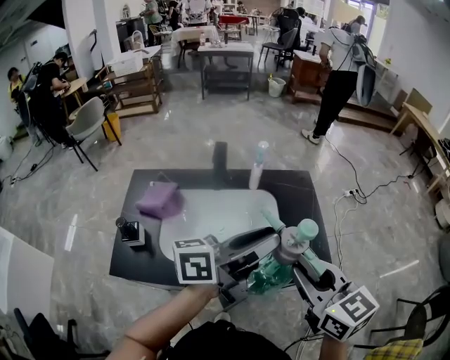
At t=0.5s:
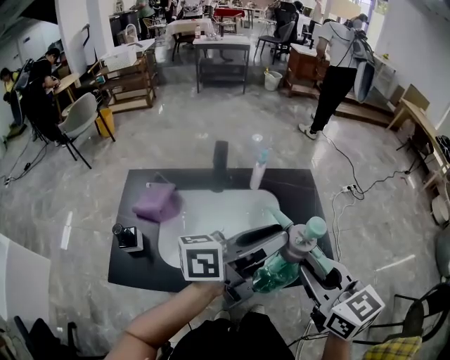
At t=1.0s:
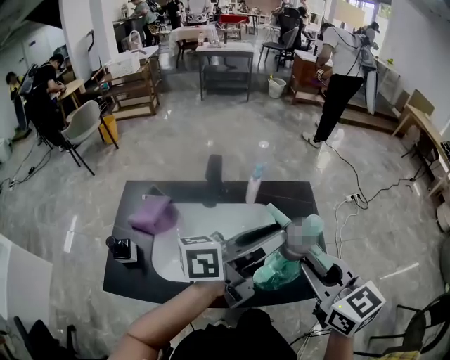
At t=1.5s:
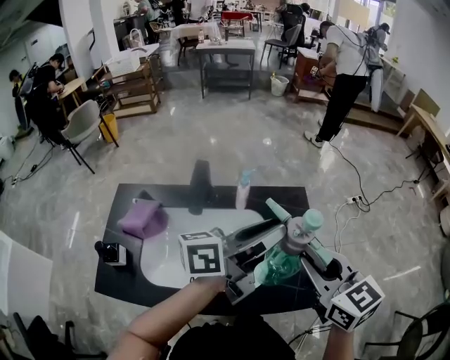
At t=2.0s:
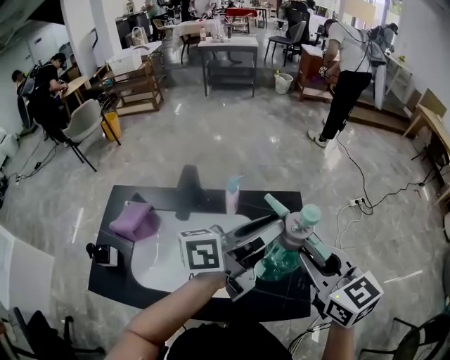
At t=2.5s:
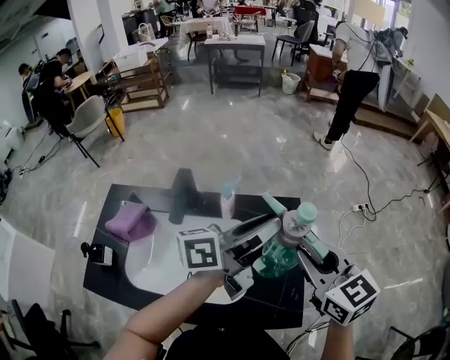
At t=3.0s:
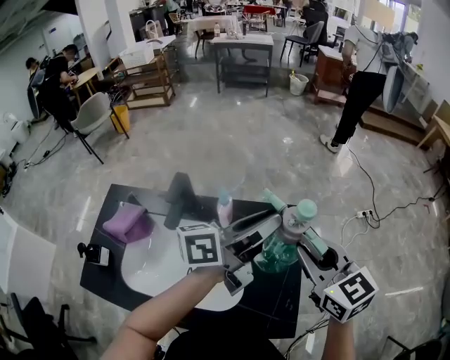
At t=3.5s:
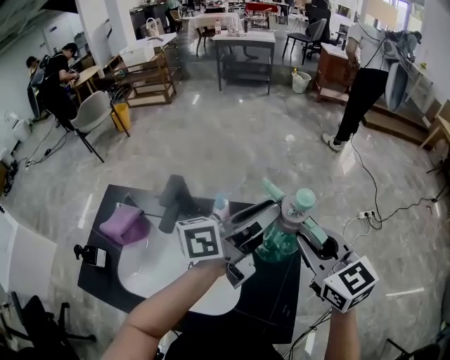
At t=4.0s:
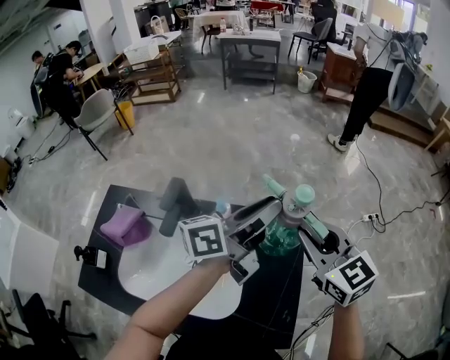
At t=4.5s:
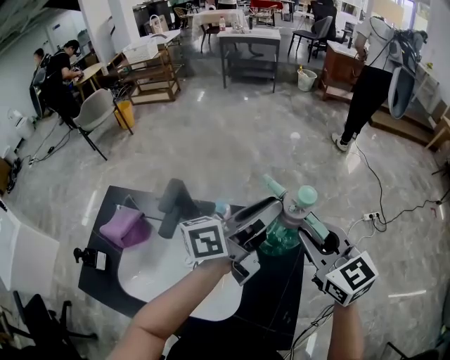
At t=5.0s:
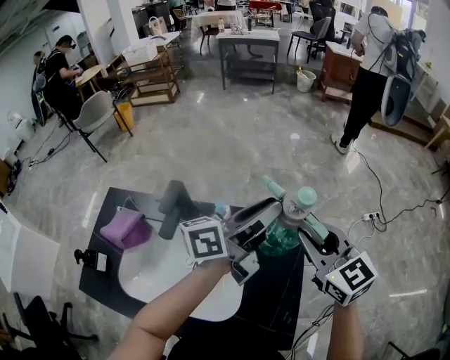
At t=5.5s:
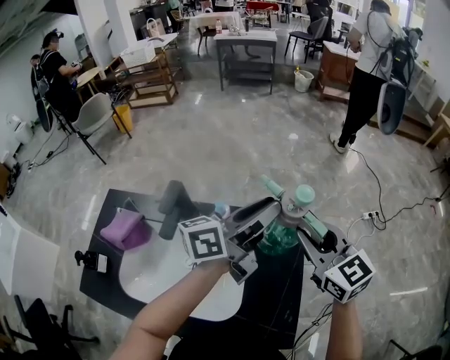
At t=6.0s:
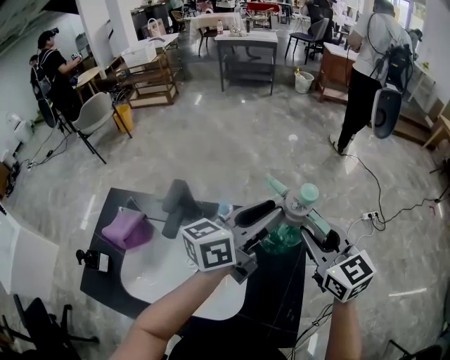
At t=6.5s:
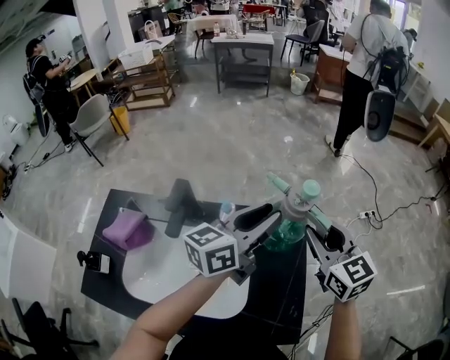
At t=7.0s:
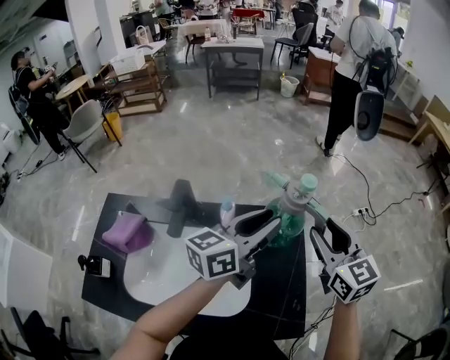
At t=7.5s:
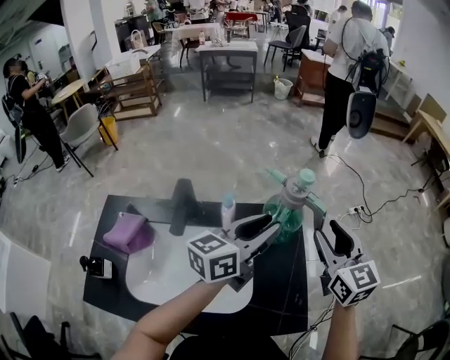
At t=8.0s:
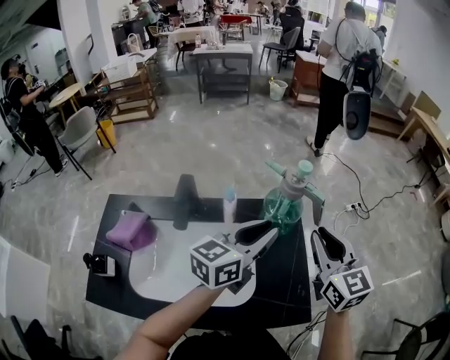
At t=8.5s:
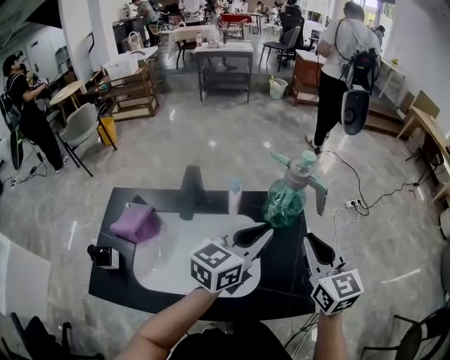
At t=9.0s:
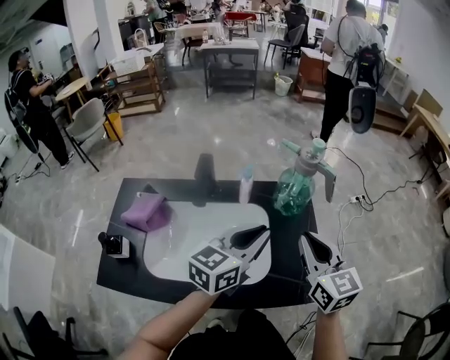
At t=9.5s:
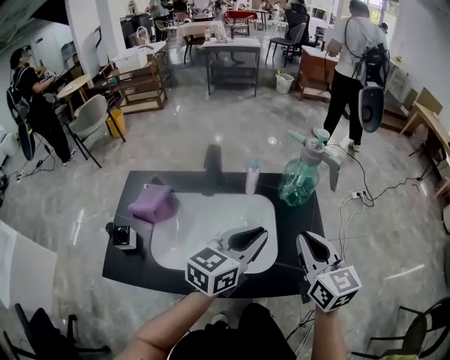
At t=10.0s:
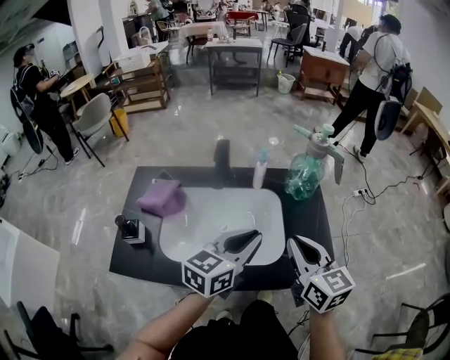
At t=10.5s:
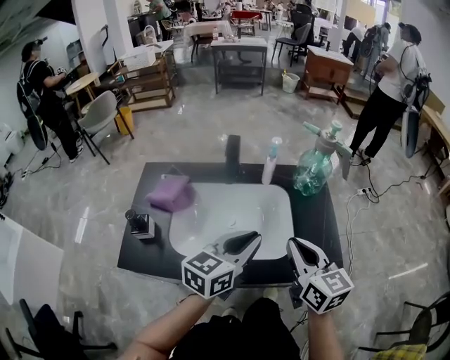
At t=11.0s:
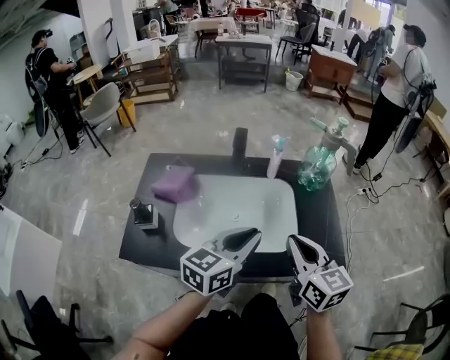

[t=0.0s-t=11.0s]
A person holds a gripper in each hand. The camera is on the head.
t=0.0s to t=2.0s: The two grippers go about 20 cm forward.
t=2.0s to t=3.5s: The two grippers go approximately 15 cm forward.
t=3.5s to t=5.5s: The grippers stay close to where they were, moving slightly.
t=5.5s to t=7.5s: The right gripper shifts roughly 5 cm backward, changes its angle by roughly 20 degrees, and opens, while the left gripper shifts about 10 cm backward, and swivels roughly 20 degrees.
t=7.5s to t=9.0s: The left gripper shifts some 15 cm backward, while the right gripper moves backward and to the left, roughly 15 cm, and closes.
t=9.0s to t=11.0s: The grippers both shift backward and to the left by some 15 cm.

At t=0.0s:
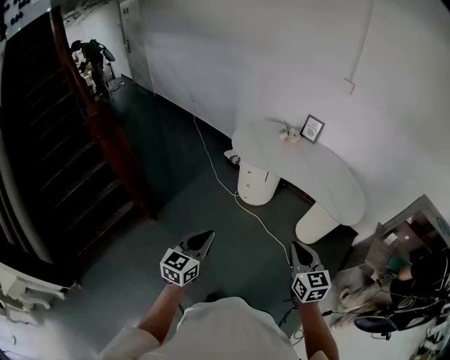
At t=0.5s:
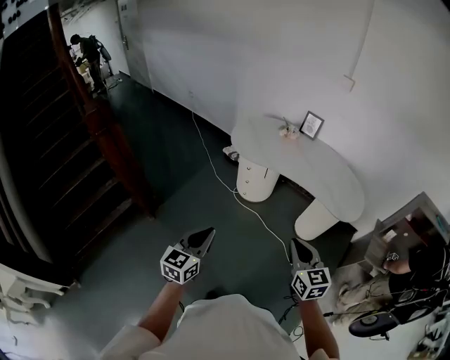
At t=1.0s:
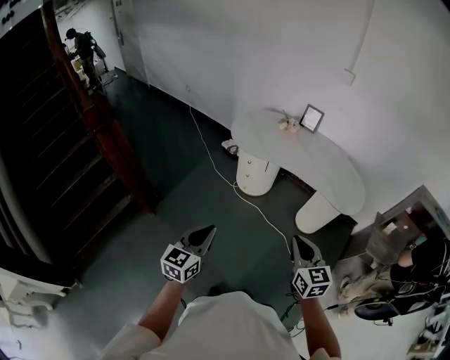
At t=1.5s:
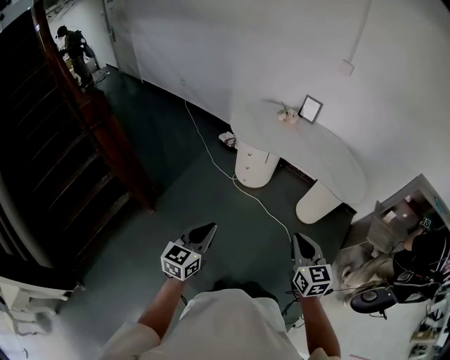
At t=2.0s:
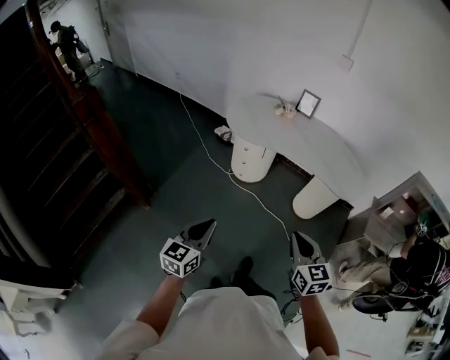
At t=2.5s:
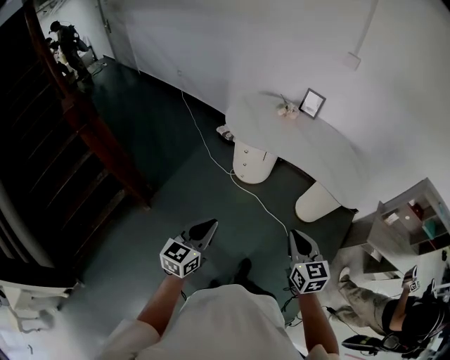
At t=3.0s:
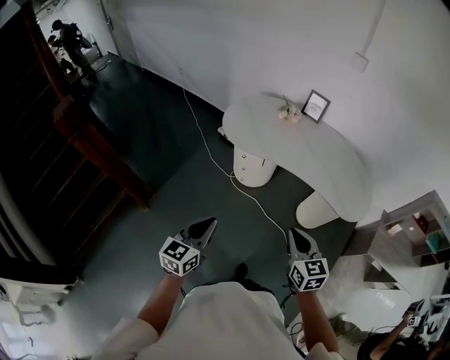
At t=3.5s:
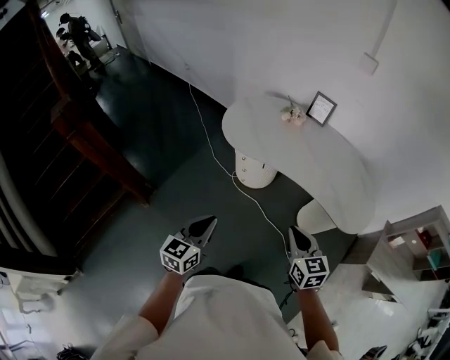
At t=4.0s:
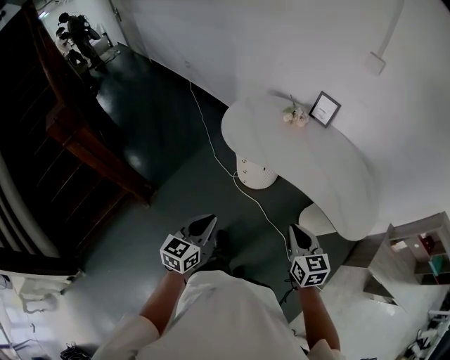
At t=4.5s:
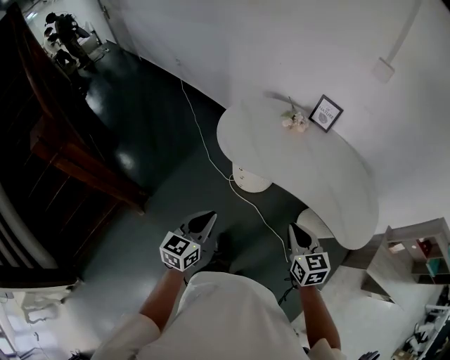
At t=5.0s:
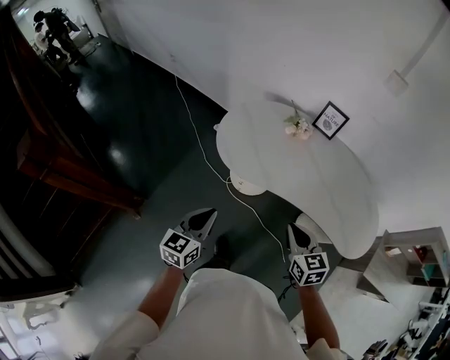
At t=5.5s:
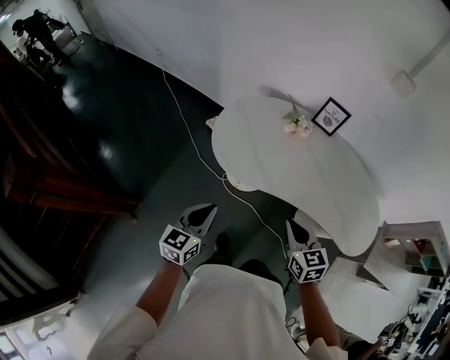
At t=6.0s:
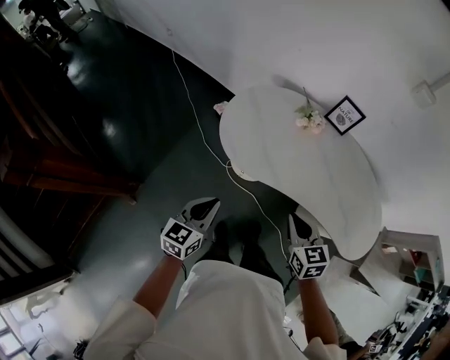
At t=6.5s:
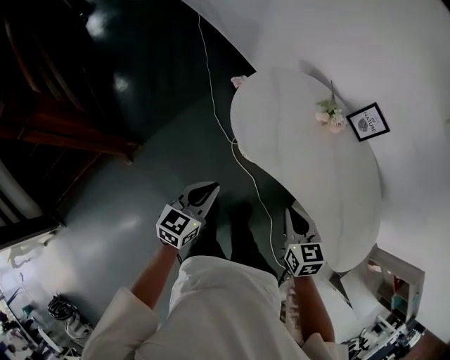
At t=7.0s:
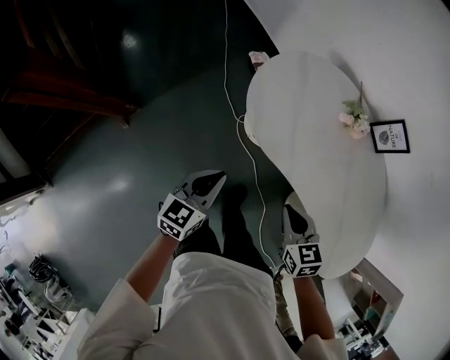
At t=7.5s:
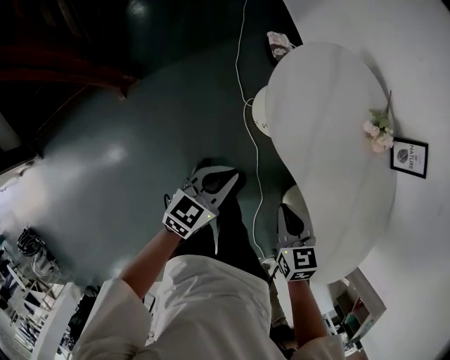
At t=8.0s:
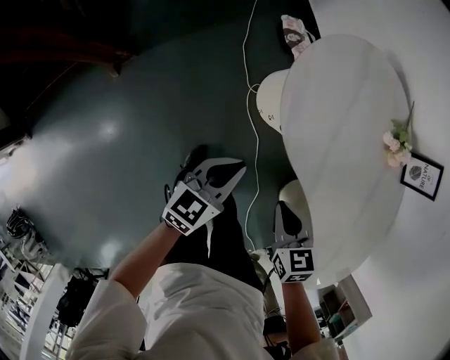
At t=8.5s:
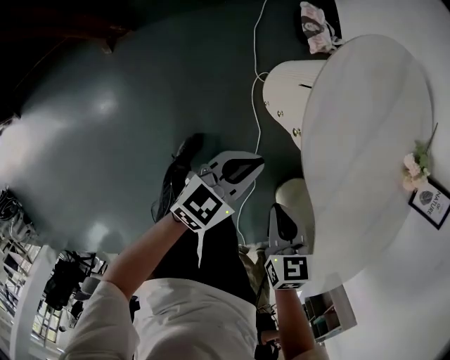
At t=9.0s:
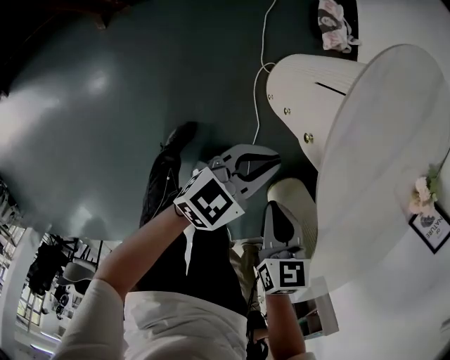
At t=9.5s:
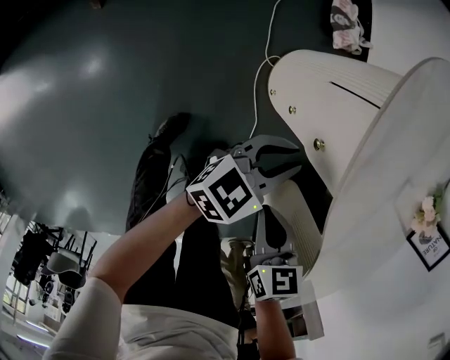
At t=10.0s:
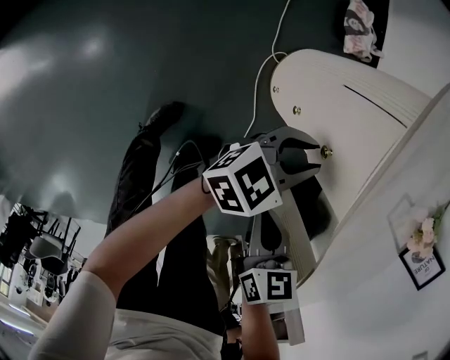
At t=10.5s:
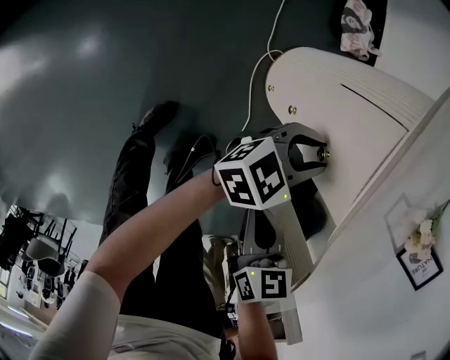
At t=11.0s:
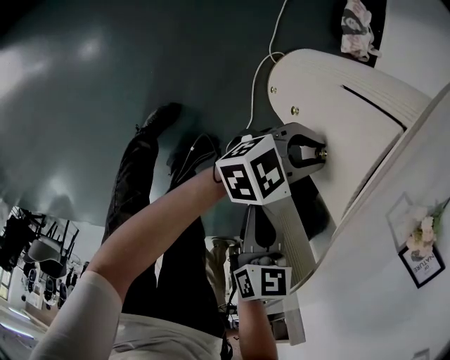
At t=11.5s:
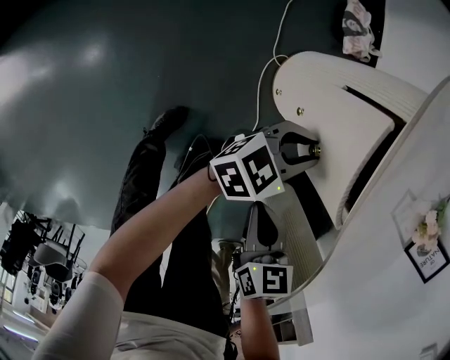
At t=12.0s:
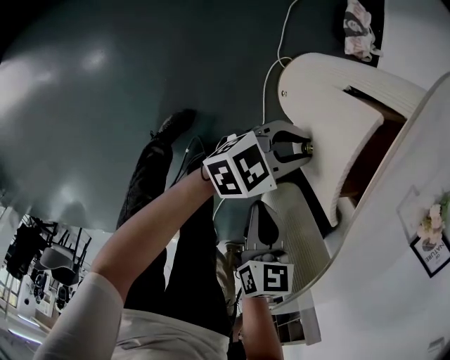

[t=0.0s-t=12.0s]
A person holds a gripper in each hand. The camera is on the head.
t=0.0s to t=2.0s: The right gripper goes approximately 5 cm to the left. The left gripper changes place by approximately 5 cm.
t=2.0s to t=4.0s: The left gripper is displaced forward and to the right by some 30 cm; the right gripper is displaced forward by about 30 cm.
t=4.0s to t=6.0s: The right gripper heads forward and to the left, covering some 25 cm; the left gripper moves forward, about 25 cm.
t=6.0s to t=8.0s: The two grippers go roughly 25 cm downward. The left gripper changes its angle by some 20 degrees. The right gripper rotates roughly 40 degrees.
t=8.0s to t=10.0s: The left gripper shifts some 25 cm downward and to the right, and opens; the right gripper shifts approximately 20 cm downward.
t=10.0s to t=12.0s: The right gripper moves approximately 5 cm; the left gripper shifts by roughly 5 cm.

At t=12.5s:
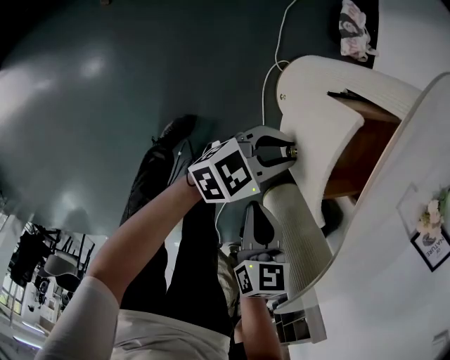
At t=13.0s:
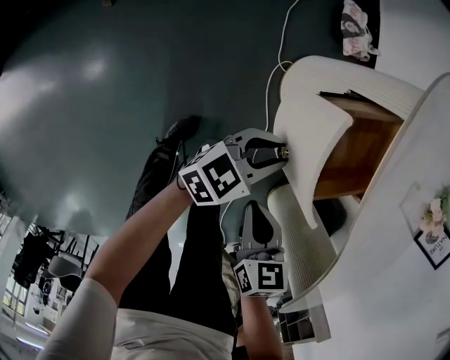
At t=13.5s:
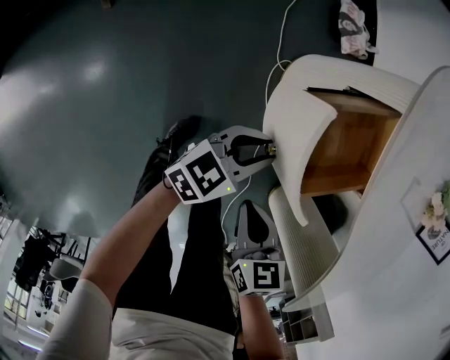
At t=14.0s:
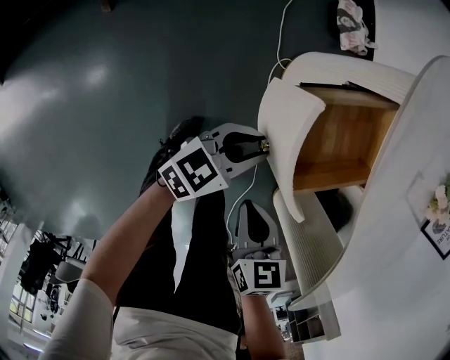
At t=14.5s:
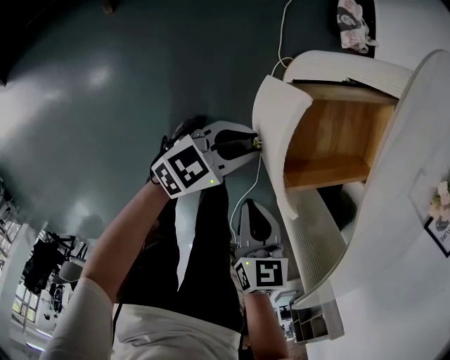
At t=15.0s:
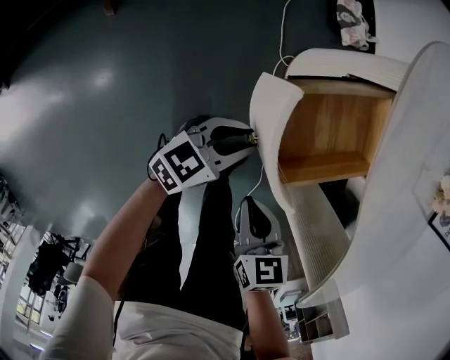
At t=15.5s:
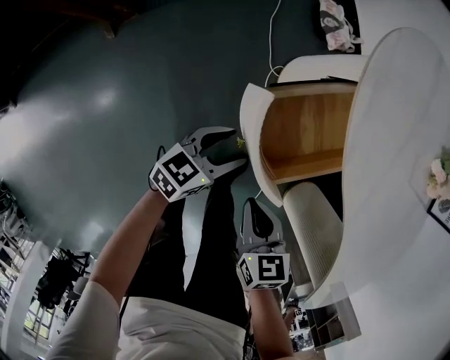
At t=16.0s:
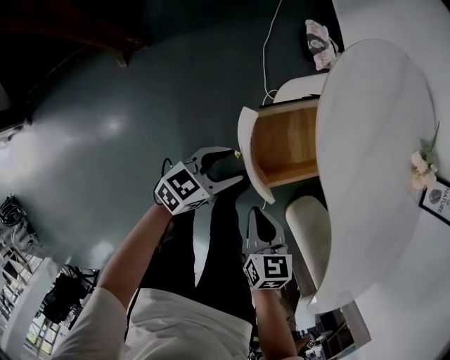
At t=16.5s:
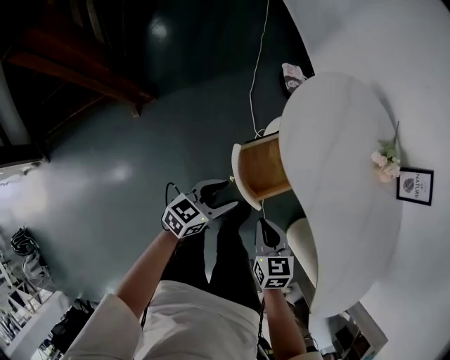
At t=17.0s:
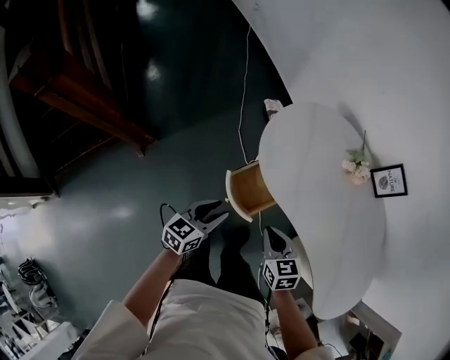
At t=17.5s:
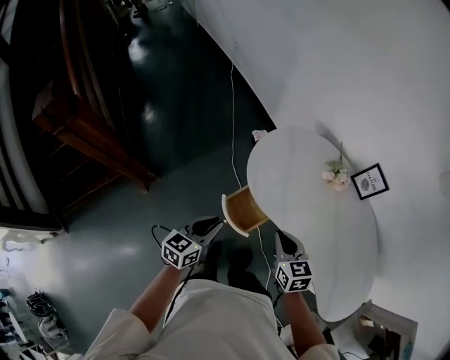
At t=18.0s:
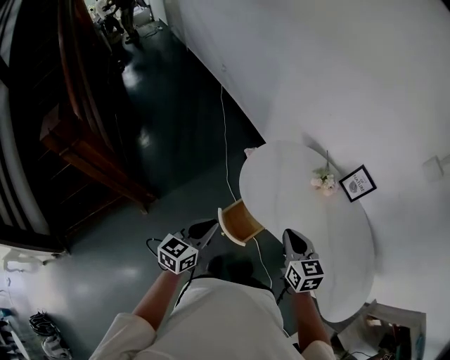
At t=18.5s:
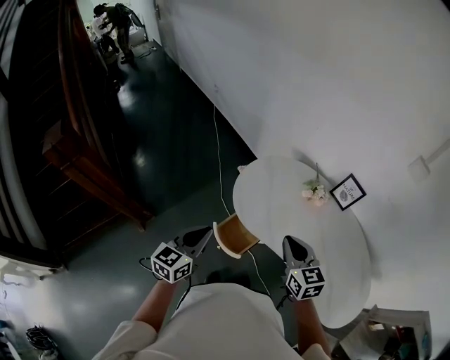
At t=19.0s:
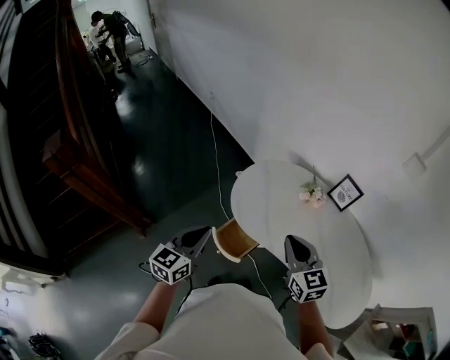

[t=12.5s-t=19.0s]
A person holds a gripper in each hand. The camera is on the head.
t=12.5s to t=14.5s: The left gripper goes roughly 10 cm to the left and backward.
t=14.5s to t=17.0s: Both grippers move upward, about 30 cm.
t=17.0s to t=19.0s: Both grippers move upward, roughly 30 cm. The left gripper closes. Meanwhile the right gripper turns by approximately 30 degrees.
